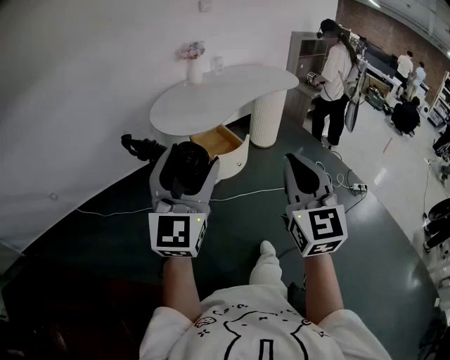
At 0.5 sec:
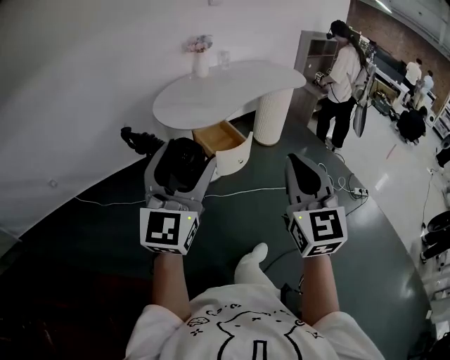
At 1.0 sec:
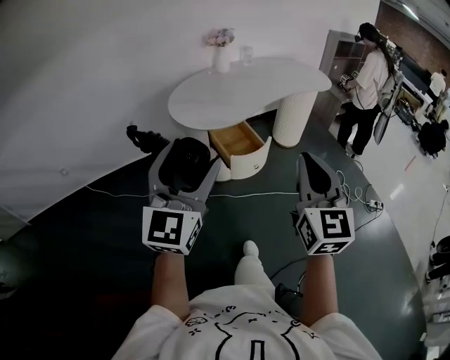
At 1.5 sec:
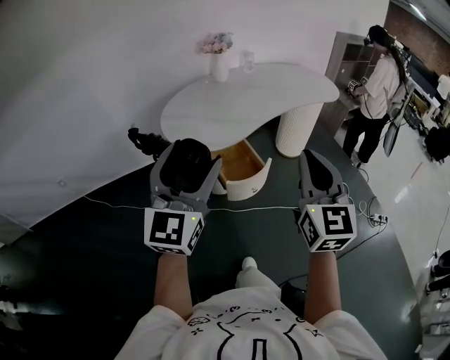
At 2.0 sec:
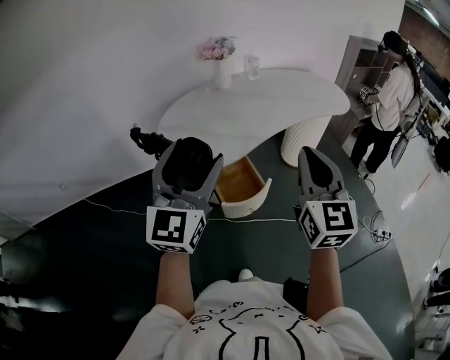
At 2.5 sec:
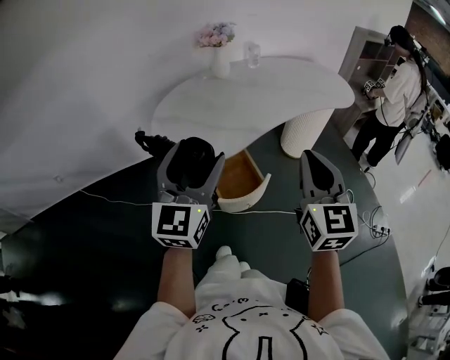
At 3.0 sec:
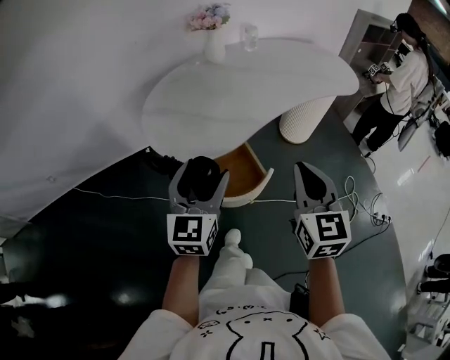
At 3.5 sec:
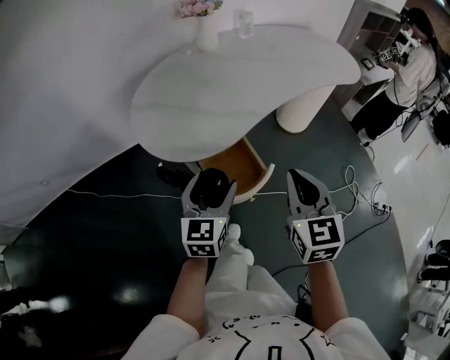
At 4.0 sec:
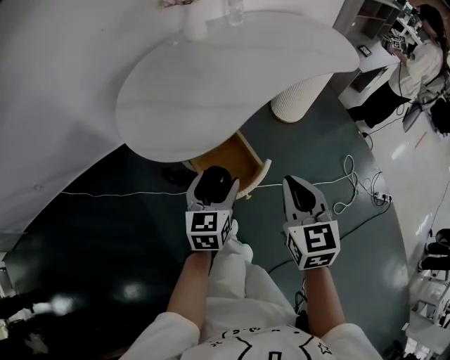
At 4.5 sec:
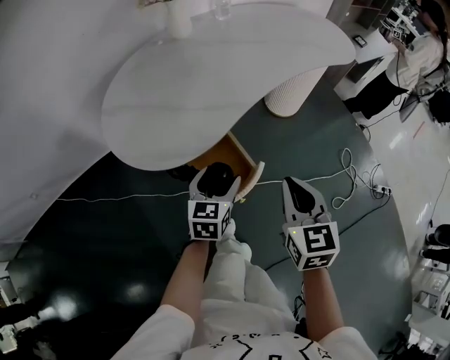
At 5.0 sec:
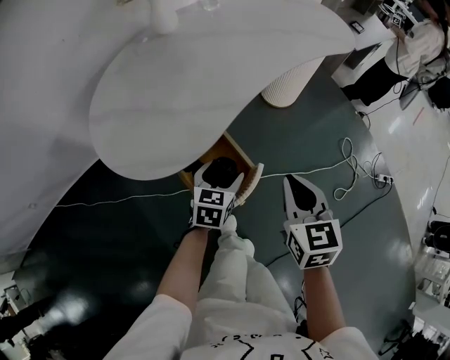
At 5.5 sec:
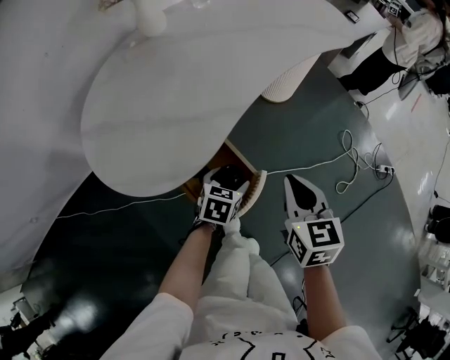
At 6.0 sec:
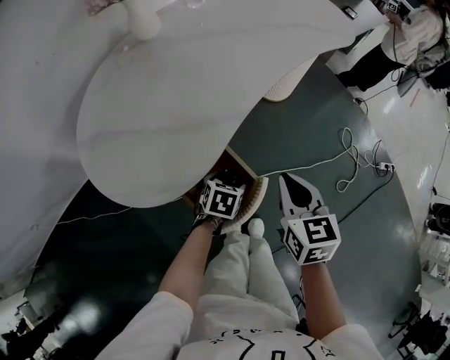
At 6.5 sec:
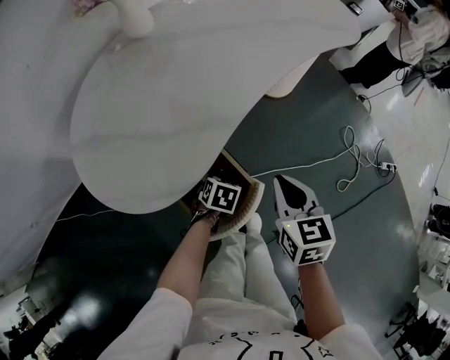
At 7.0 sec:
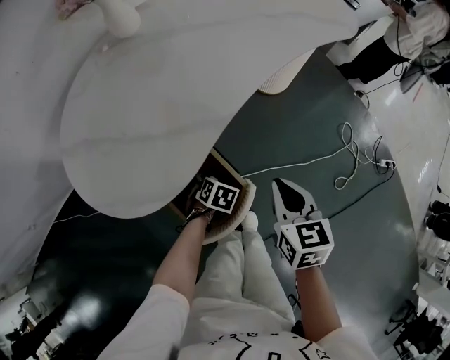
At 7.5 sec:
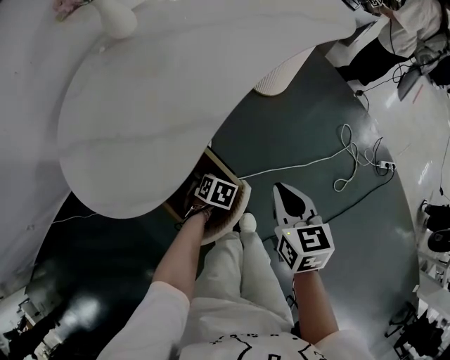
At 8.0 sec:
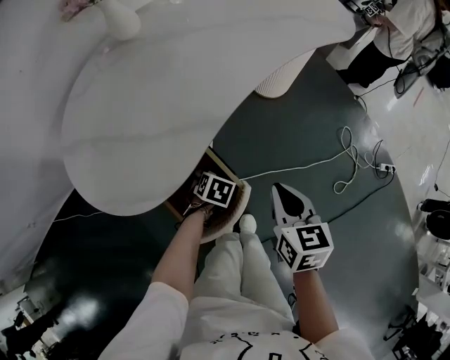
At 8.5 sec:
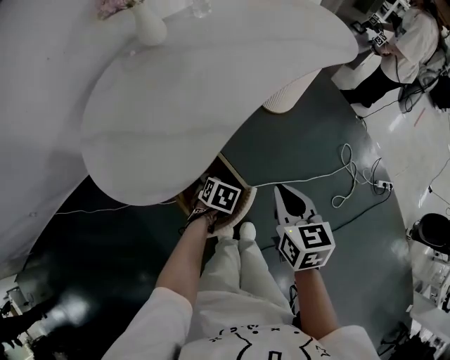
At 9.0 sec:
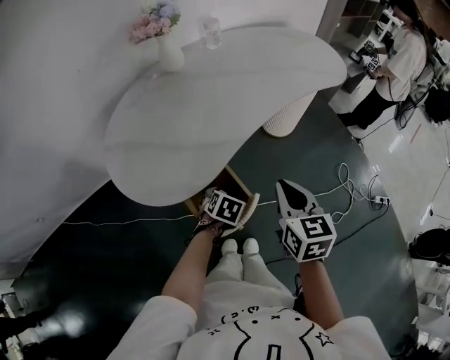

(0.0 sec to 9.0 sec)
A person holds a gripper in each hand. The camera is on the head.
0.0 sec - 2.0 sec: The grippers both shift forward by approximately 35 cm.
2.0 sec - 4.5 sec: The right gripper is displaced downward by about 25 cm, and changes its angle by some 30 degrees; the left gripper is displaced downward and forward by approximately 40 cm, and points its fingers approximately 40 degrees further downward.
4.5 sec - 7.0 sec: The left gripper travels downward by about 25 cm, and angles its fingers downward, by about 50 degrees. Meanwhile the right gripper goes about 10 cm downward.
7.0 sec - 9.0 sec: Both grippers move upward, some 15 cm.

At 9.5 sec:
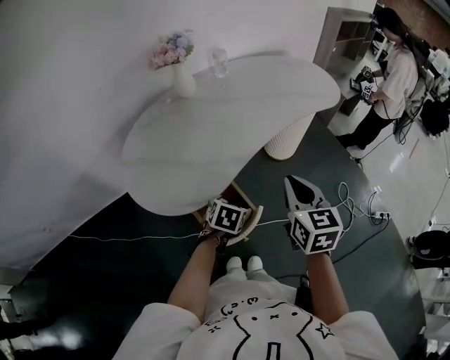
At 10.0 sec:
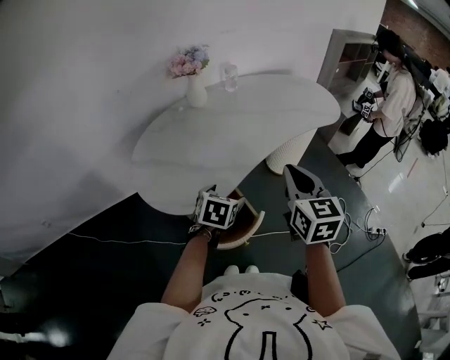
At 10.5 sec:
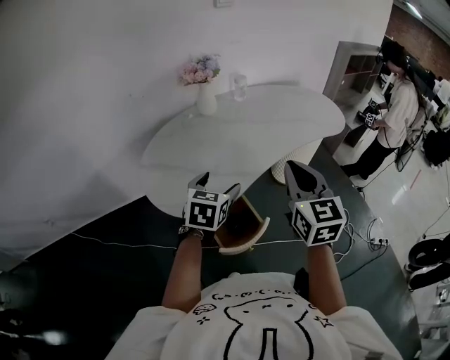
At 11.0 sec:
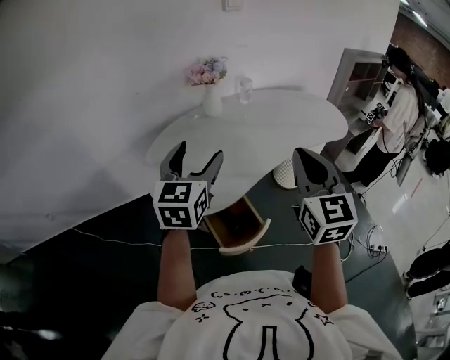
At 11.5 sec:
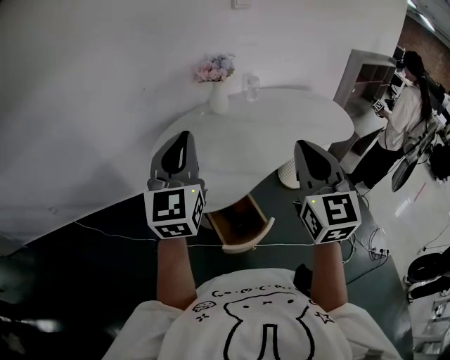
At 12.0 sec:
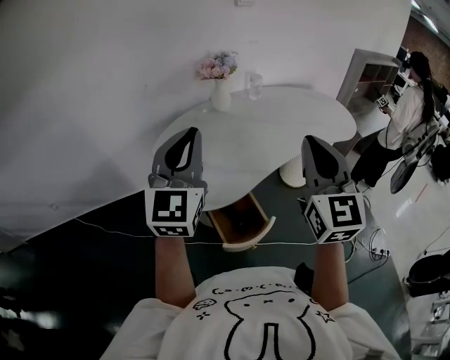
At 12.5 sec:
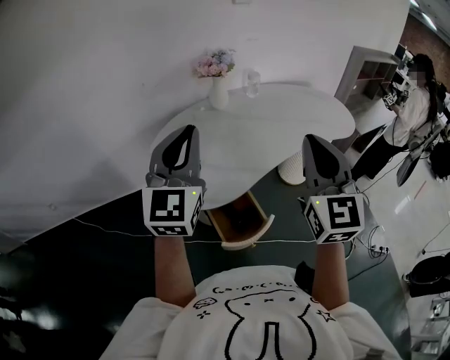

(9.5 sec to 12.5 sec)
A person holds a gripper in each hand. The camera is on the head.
9.5 sec - 11.0 sec: The left gripper goes approximately 35 cm upward, and points its fingers some 50 degrees further upward. The right gripper travels upward by some 20 cm, and swivels about 30 degrees.
11.0 sec - 12.5 sec: The left gripper travels upward by about 5 cm, swivels approximately 20 degrees, and closes.

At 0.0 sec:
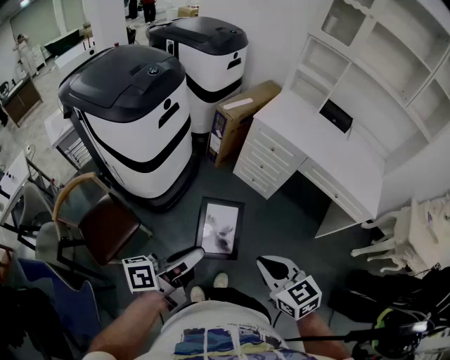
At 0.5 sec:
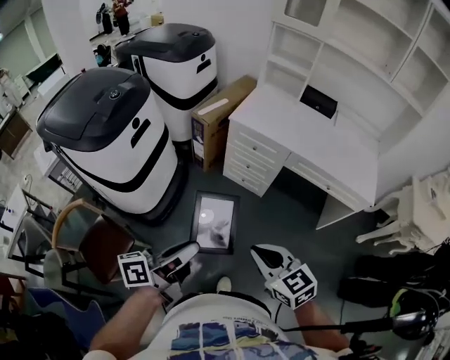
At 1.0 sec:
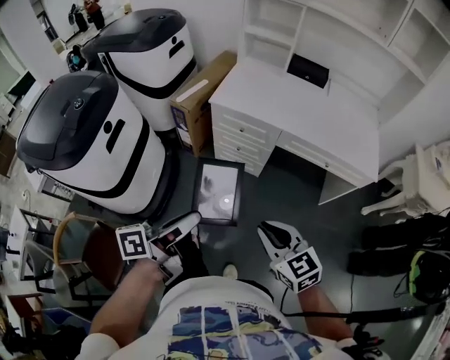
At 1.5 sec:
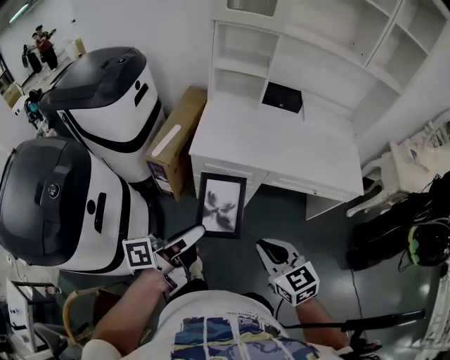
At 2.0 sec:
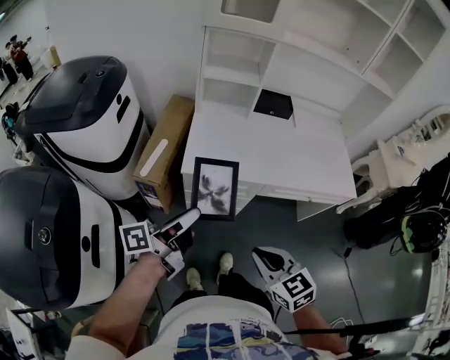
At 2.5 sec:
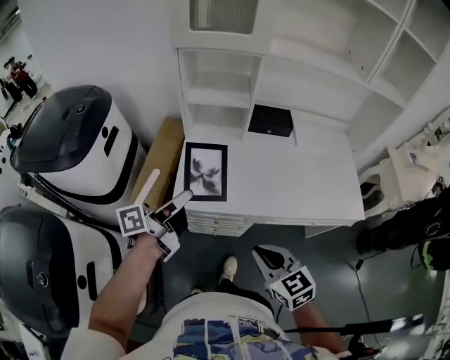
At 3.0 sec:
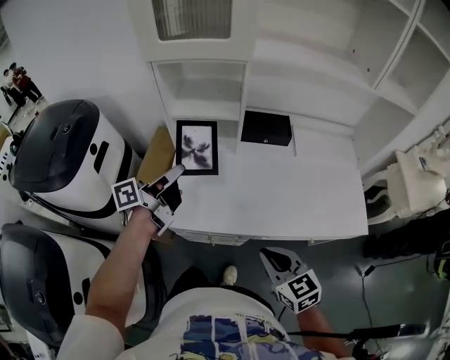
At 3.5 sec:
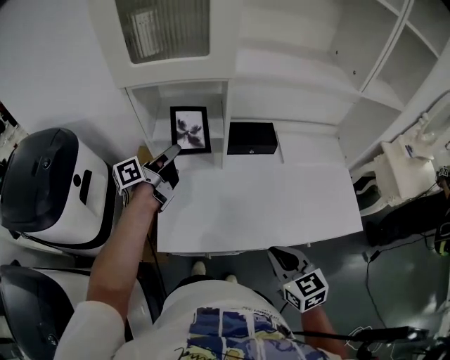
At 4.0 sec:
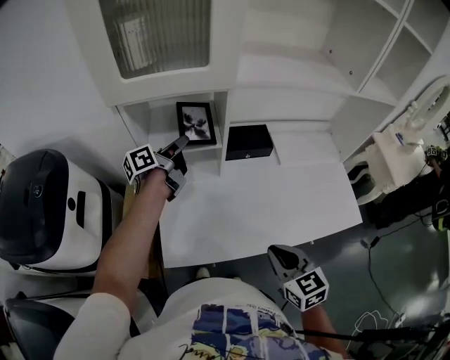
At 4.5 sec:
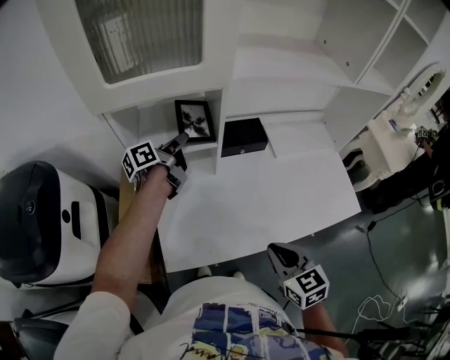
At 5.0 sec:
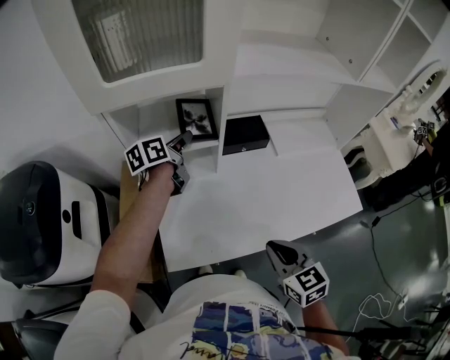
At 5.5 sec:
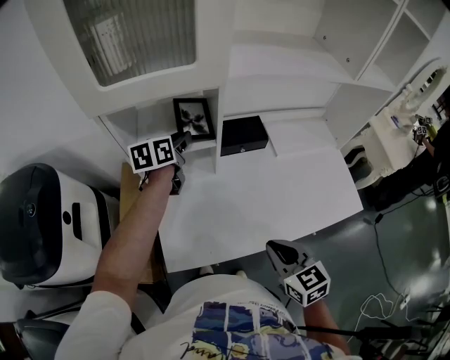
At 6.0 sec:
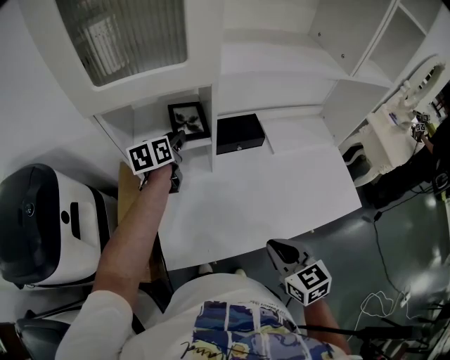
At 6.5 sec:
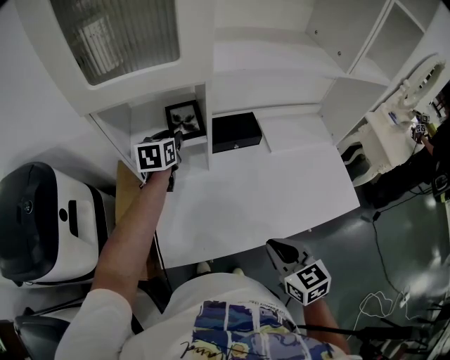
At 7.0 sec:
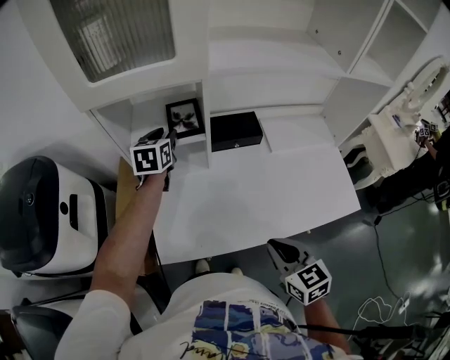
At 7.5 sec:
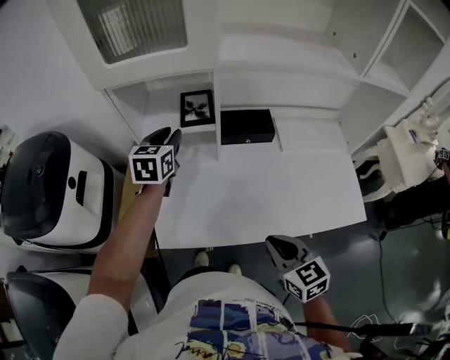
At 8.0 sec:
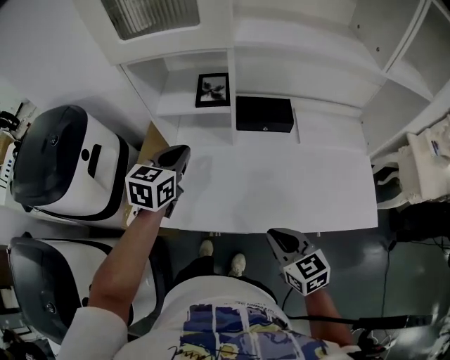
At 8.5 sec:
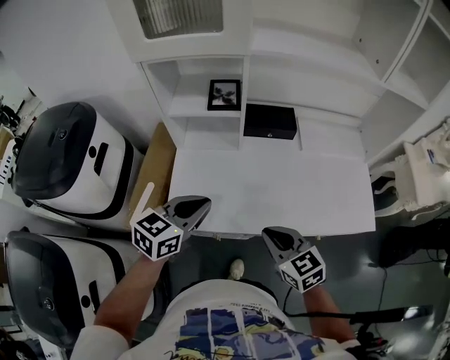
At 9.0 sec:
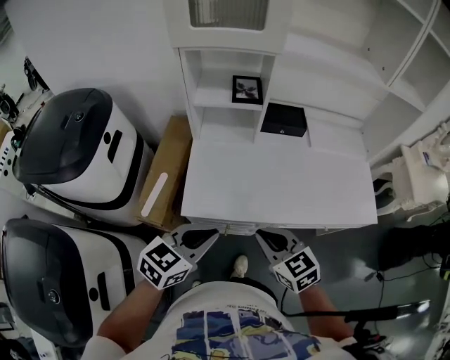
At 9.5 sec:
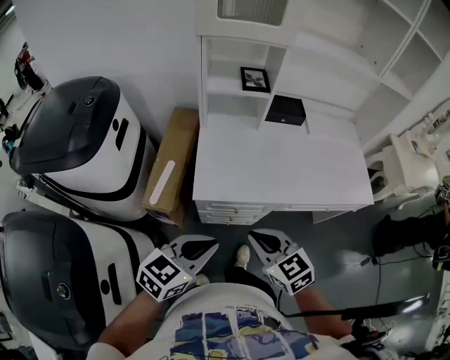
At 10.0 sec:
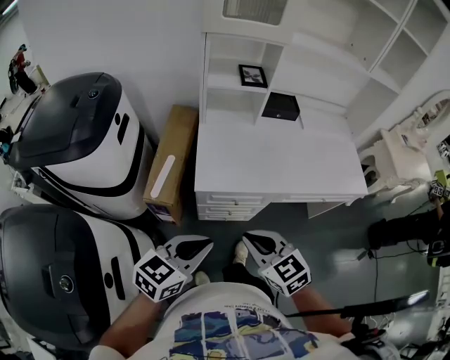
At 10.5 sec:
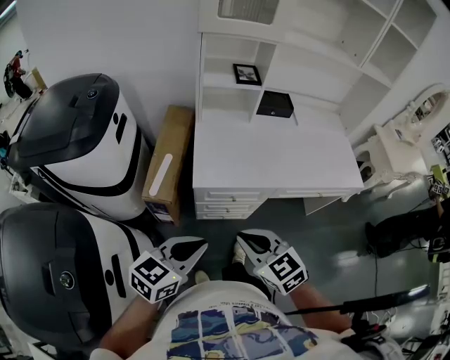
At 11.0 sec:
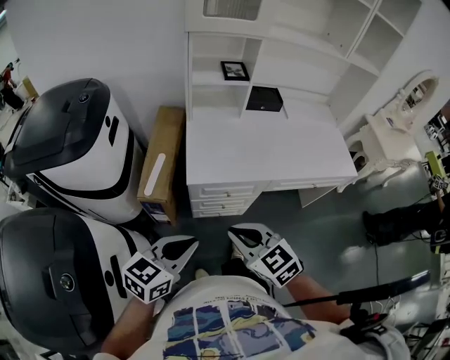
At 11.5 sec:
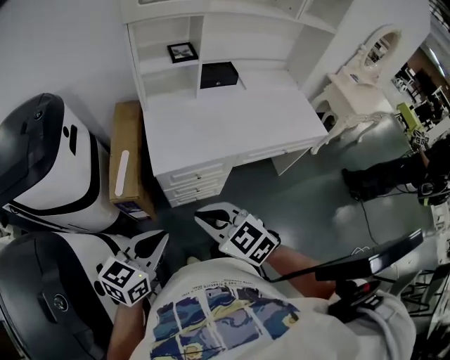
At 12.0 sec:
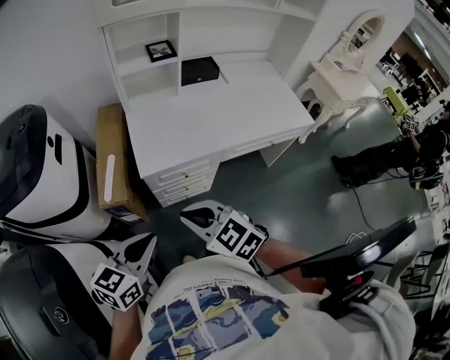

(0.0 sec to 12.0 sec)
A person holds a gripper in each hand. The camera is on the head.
0.0 sec - 2.0 sec: The left gripper moves roughly 50 cm, and turns by about 30 degrees, while the right gripper changes place by about 35 cm, and rotates approximately 30 degrees.
2.0 sec - 4.0 sec: The left gripper heads forward, covering some 60 cm, while the right gripper goes roughly 35 cm forward, and rotates about 20 degrees.
4.0 sec - 6.0 sec: The left gripper changes its angle by roughly 40 degrees, and opens up.
6.0 sec - 8.0 sec: The left gripper goes about 20 cm backward, rotates approximately 20 degrees, and closes up. Meanwhile the right gripper moves approximately 5 cm.
8.0 sec - 10.0 sec: The left gripper is displaced backward by some 40 cm, and turns by approximately 30 degrees. Meanwhile the right gripper heads to the left and backward, covering roughly 30 cm.
10.0 sec - 12.0 sec: The left gripper shifts by about 5 cm, while the right gripper shifts by about 5 cm.

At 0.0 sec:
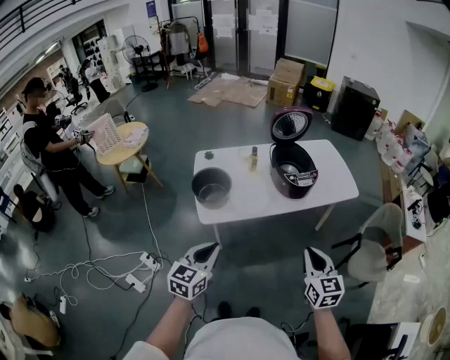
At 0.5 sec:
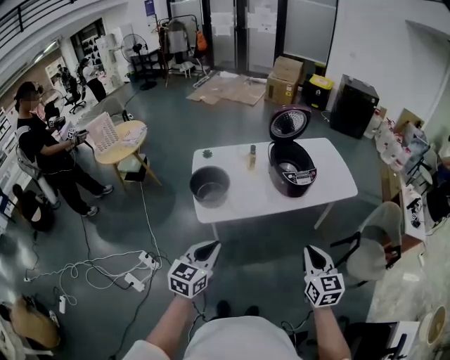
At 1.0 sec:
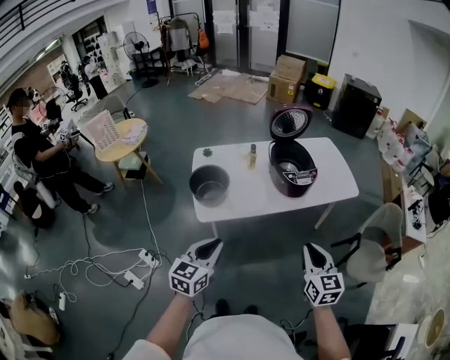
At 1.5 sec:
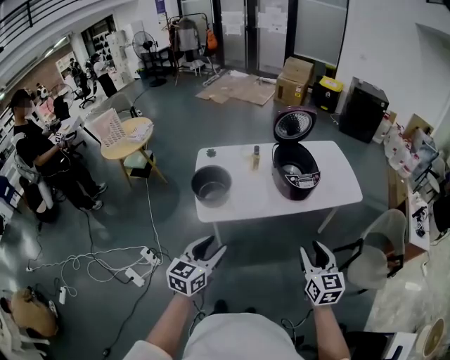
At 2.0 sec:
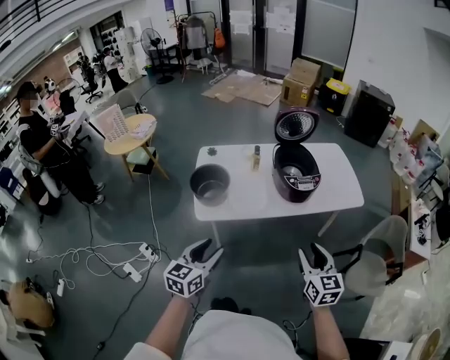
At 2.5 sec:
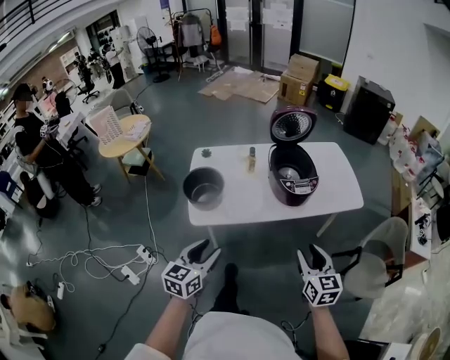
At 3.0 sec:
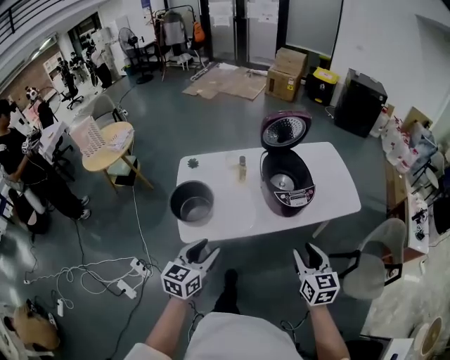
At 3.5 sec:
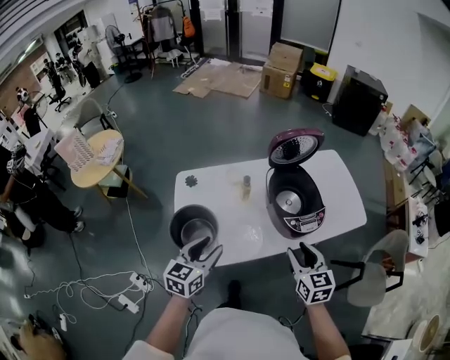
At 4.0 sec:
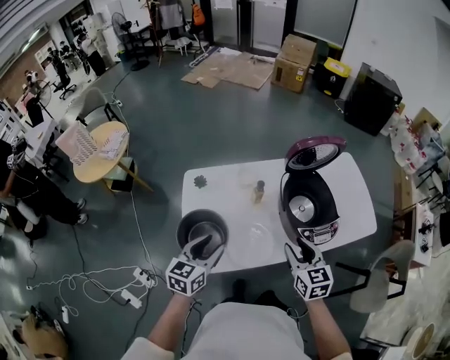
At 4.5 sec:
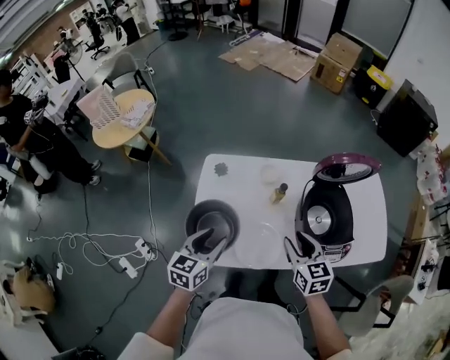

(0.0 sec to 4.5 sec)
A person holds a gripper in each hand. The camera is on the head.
0.0 sec - 2.0 sec: The right gripper is displaced forward by some 5 cm, and opens up. The left gripper ends up roughly 5 cm from where it was, and opens.
2.0 sec - 4.5 sec: The right gripper moves forward and to the left, approximately 40 cm; the left gripper travels forward by approximately 35 cm.
